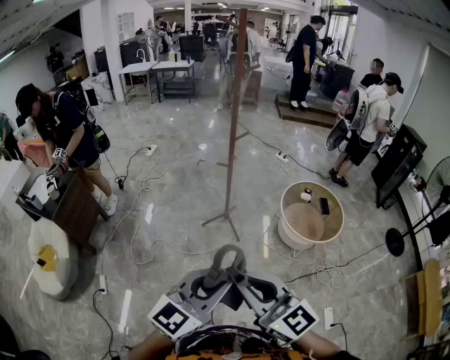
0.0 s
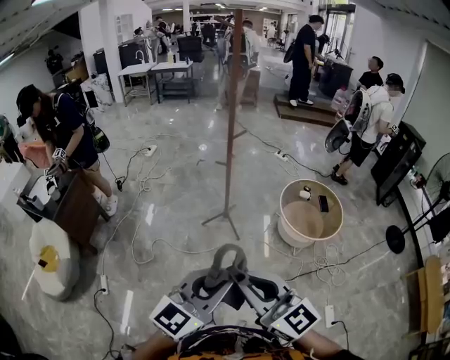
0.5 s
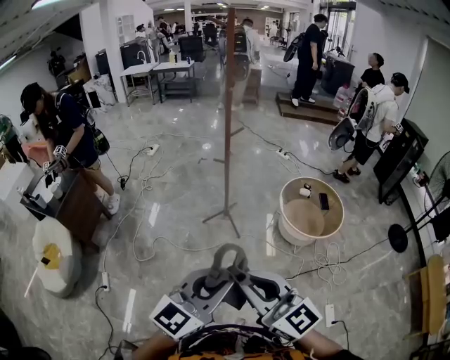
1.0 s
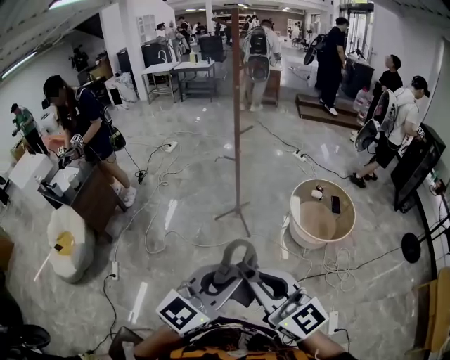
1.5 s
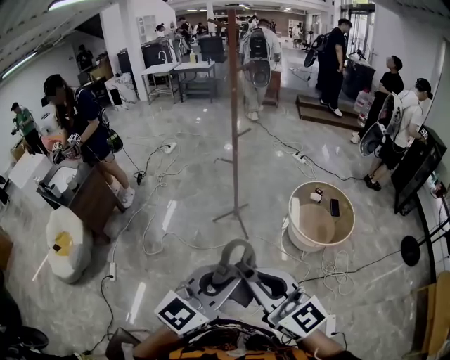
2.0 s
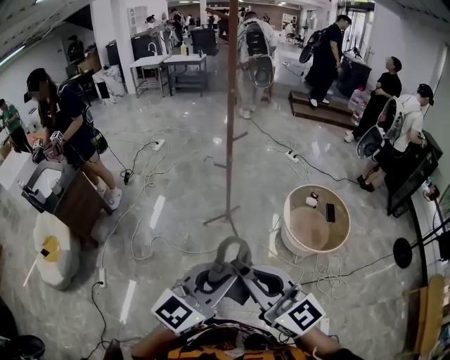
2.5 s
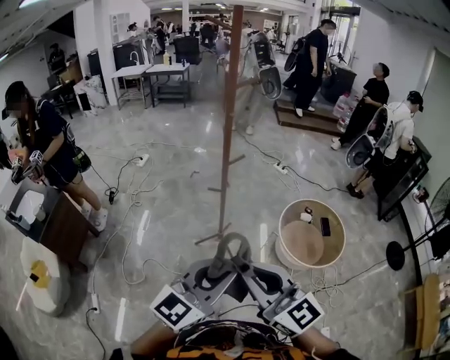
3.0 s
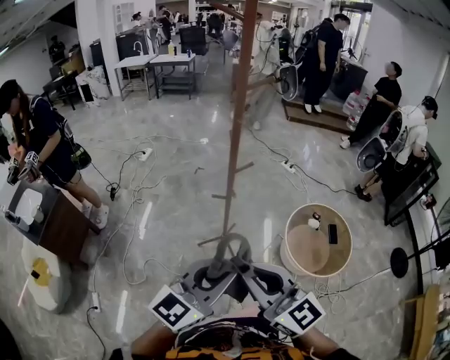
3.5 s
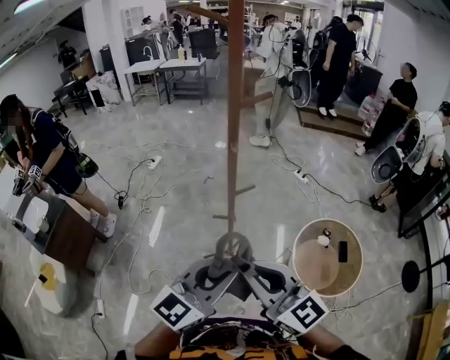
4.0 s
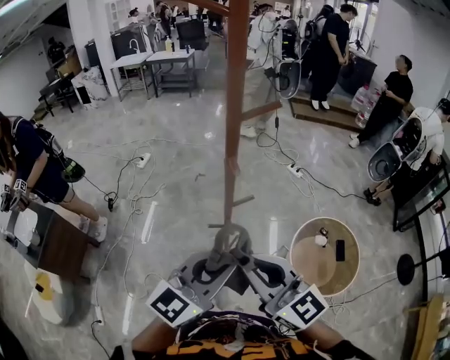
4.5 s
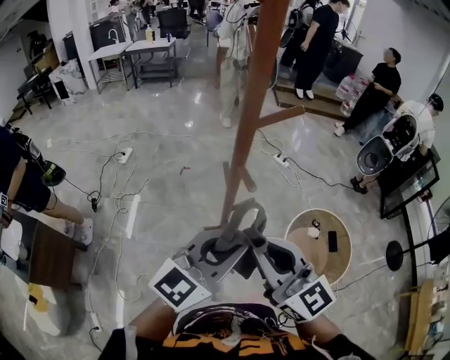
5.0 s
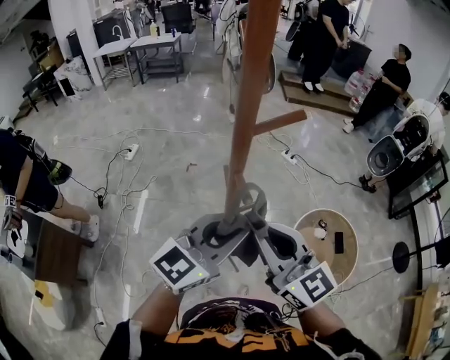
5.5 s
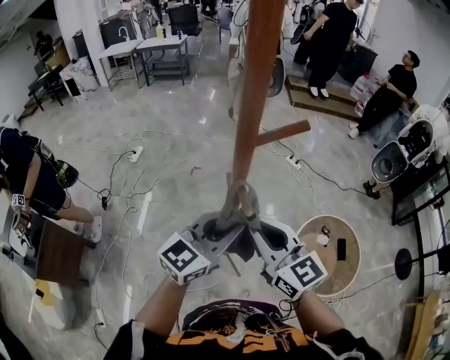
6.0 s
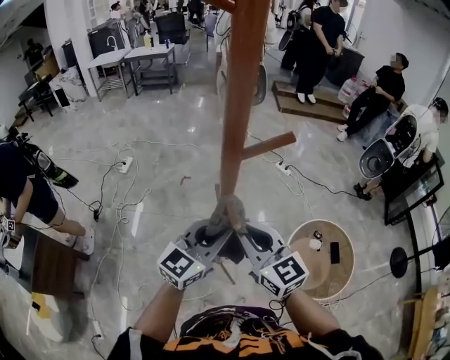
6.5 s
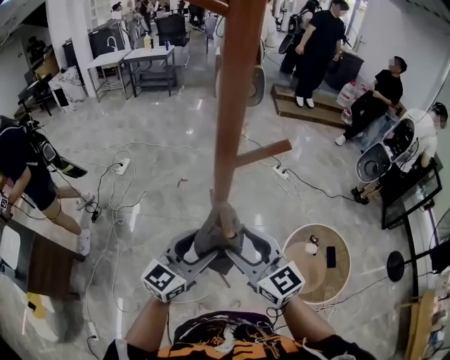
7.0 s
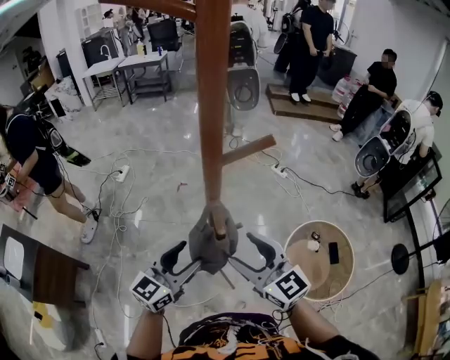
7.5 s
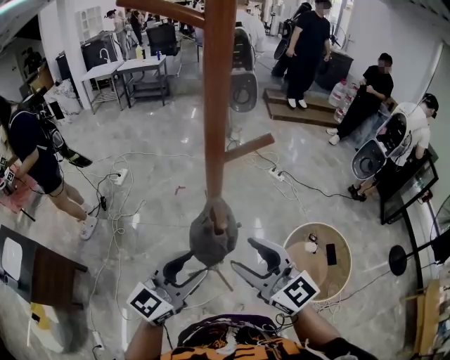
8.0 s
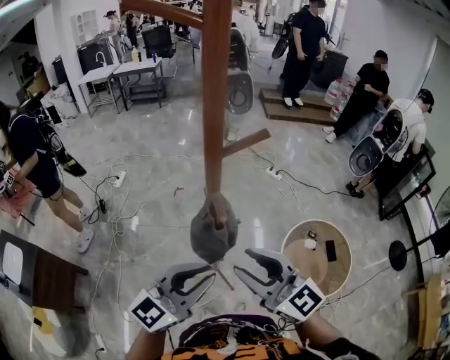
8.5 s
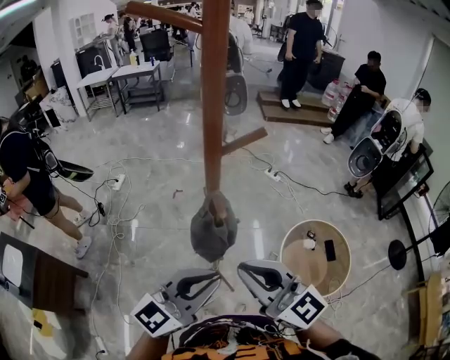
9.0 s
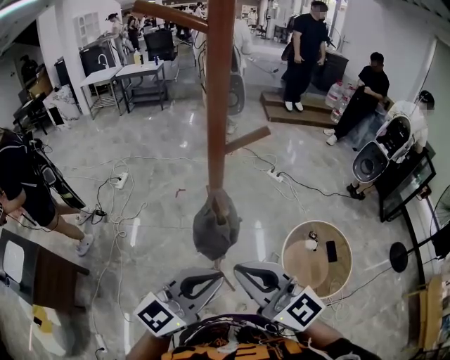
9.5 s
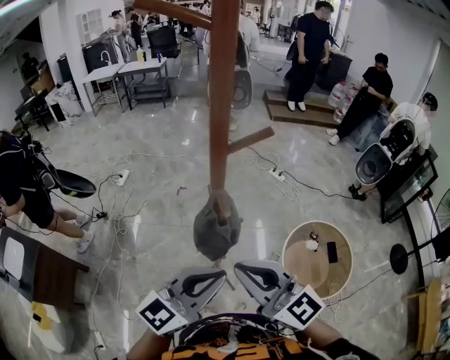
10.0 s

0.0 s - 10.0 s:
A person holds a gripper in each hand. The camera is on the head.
0.0 s - 2.0 s: The grippers both shift to the right by some 15 cm.
2.0 s - 4.0 s: Both grippers are carried forward, some 50 cm.
4.0 s - 6.0 s: Both grippers travel together forward, some 30 cm.
6.0 s - 8.0 s: Both grippers move backward, about 5 cm. The right gripper opens, while the left gripper opens up.
8.0 s - 10.0 s: Both grippers travel together backward, roughly 5 cm. The left gripper closes. The right gripper closes.

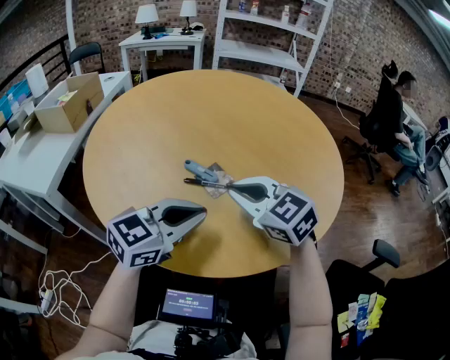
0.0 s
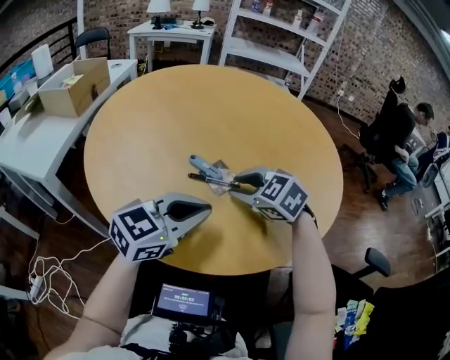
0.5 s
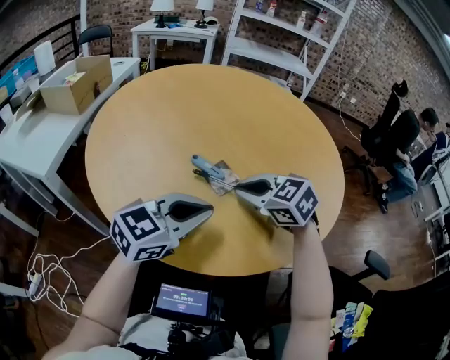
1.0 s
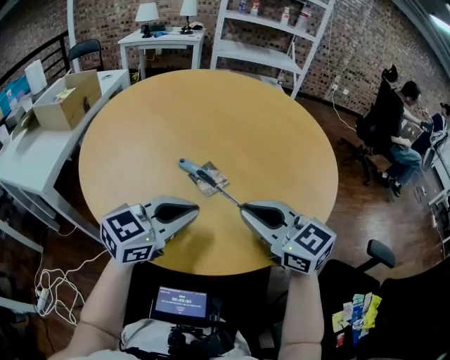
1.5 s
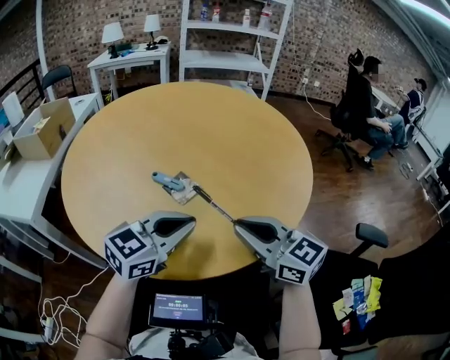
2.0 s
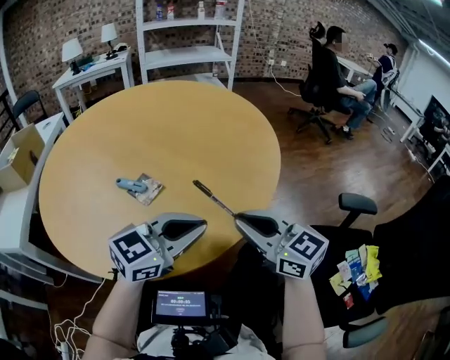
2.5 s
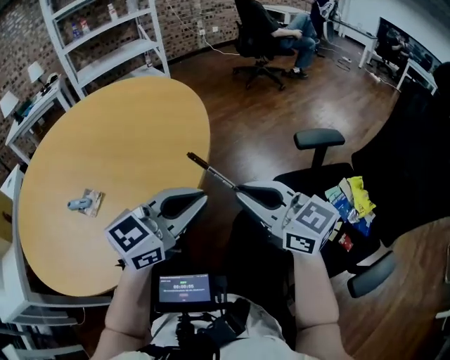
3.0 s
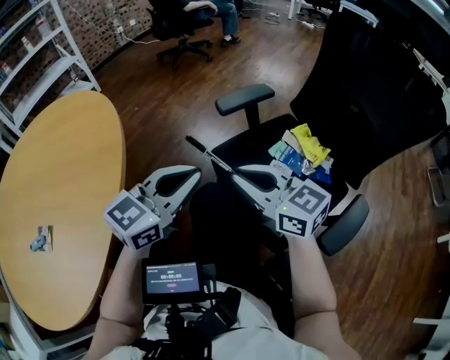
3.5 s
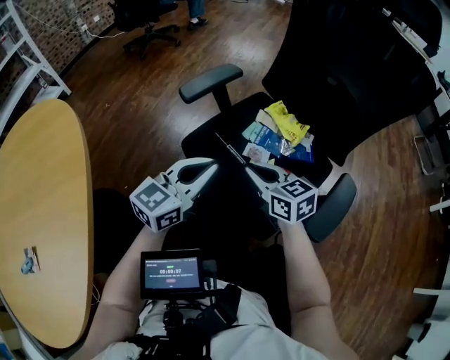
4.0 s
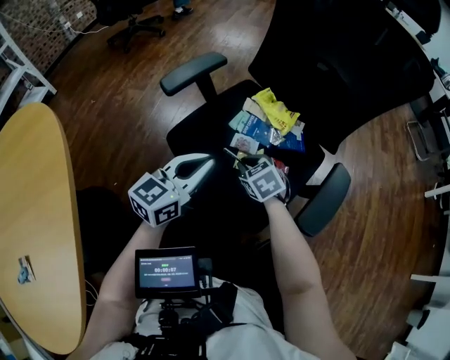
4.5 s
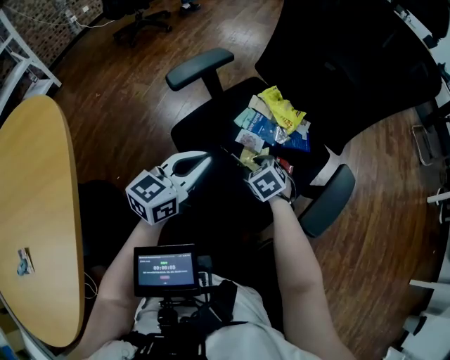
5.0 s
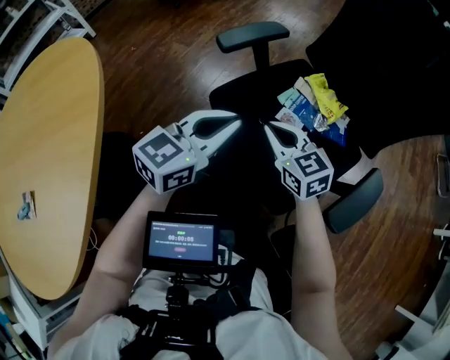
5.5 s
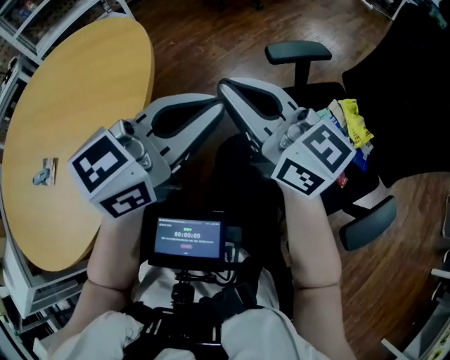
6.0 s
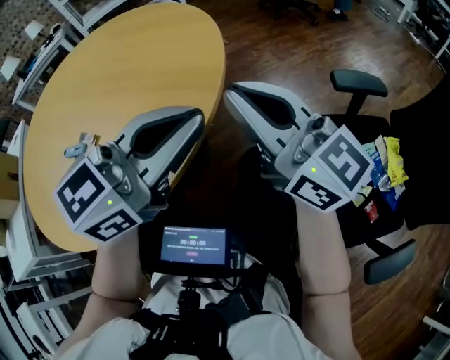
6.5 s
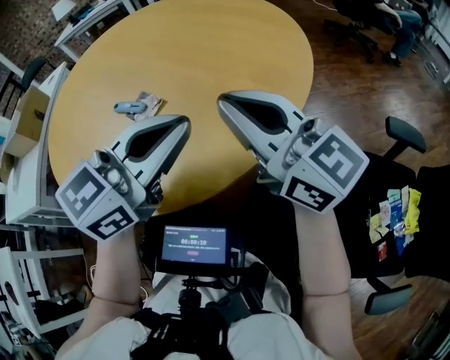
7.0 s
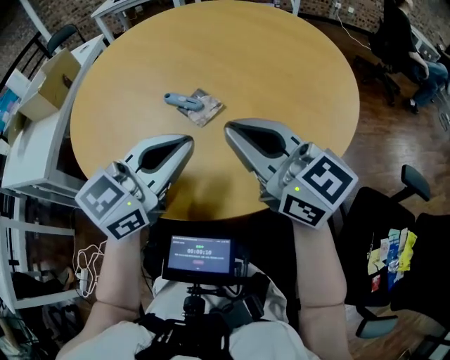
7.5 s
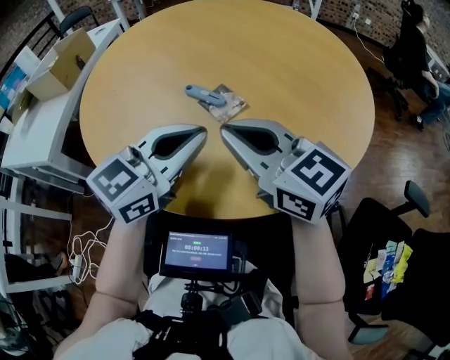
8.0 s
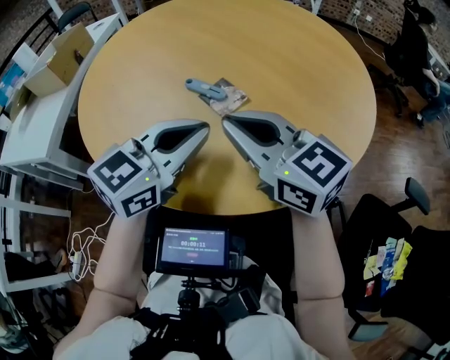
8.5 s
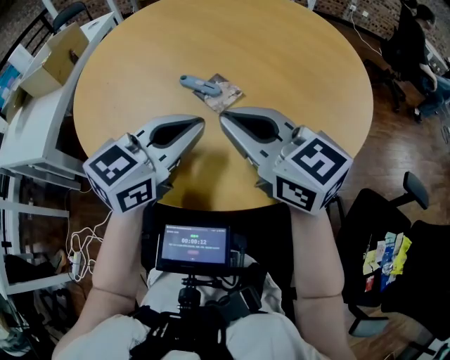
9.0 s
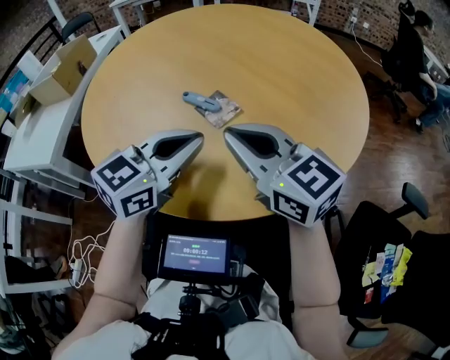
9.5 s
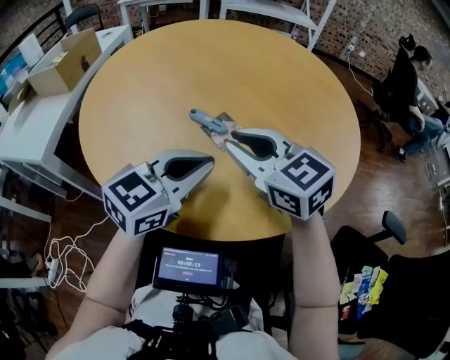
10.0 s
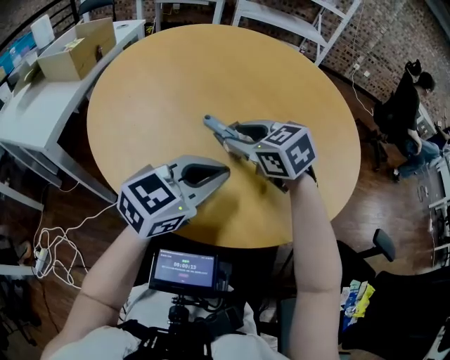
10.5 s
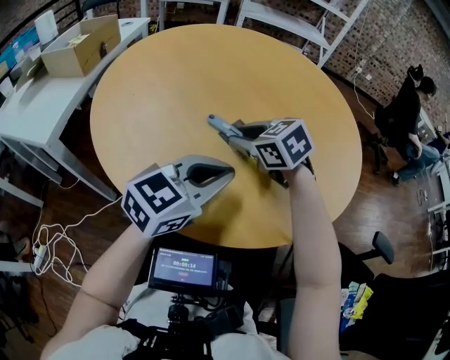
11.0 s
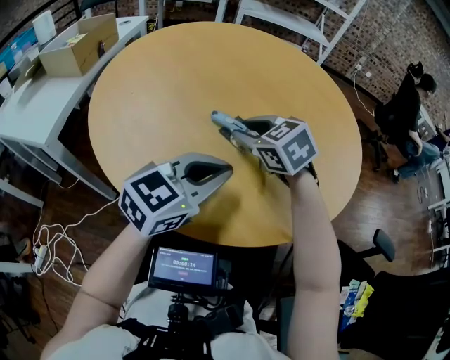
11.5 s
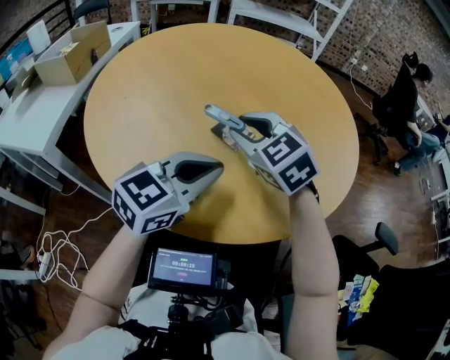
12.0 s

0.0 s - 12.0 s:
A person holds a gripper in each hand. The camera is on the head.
0.0 s - 2.0 s: The right gripper is displaced to the right and backward by some 10 cm, rotates approximately 30 degrees, and opens, then closes once more.
2.0 s - 4.0 s: The two grippers travel together, approximately 50 cm. The left gripper rotates roughly 60 degrees; the right gripper changes its angle by roughly 80 degrees.
4.0 s - 6.0 s: The grippers both shift upward by roughly 20 cm. The right gripper points its fingers some 30 degrees further upward, and opens, then closes again.
6.0 s - 8.0 s: Both grippers are carried about 50 cm. The left gripper rotates some 50 degrees, while the right gripper changes its angle by about 50 degrees.
8.0 s - 10.0 s: The grippers make only small movements.
10.0 s - 12.0 s: The right gripper goes some 5 cm forward, travels downward and back again, about 10 cm each way, and changes its angle by roughly 20 degrees.

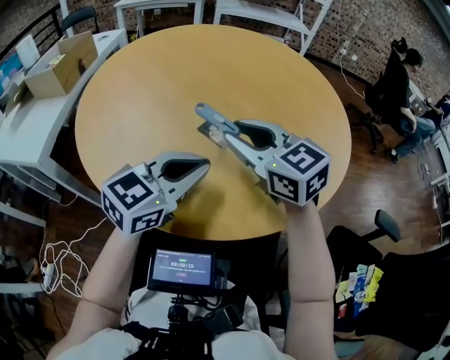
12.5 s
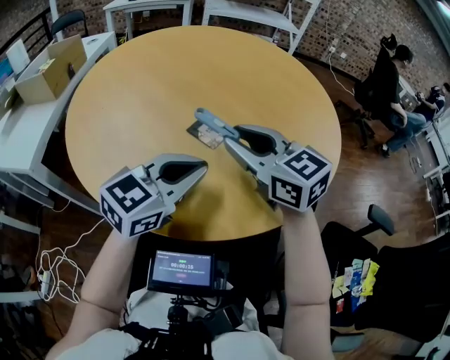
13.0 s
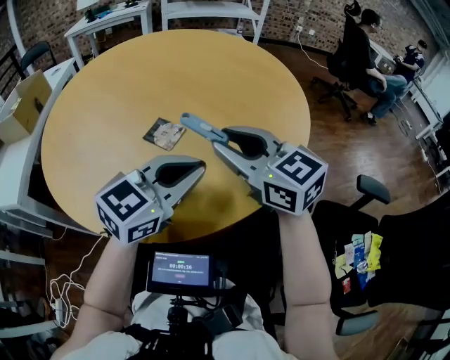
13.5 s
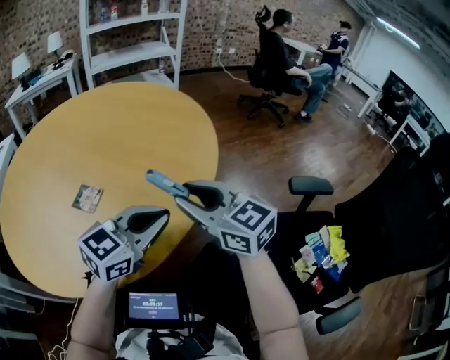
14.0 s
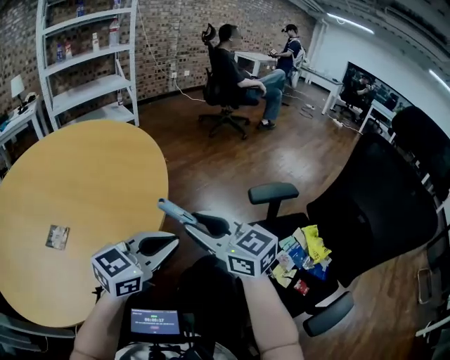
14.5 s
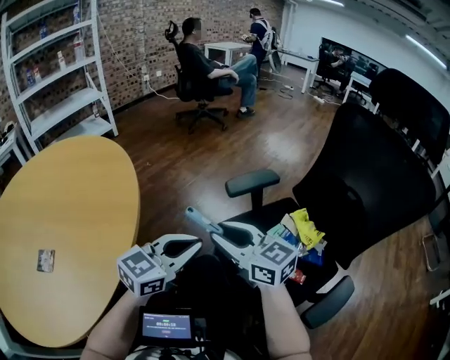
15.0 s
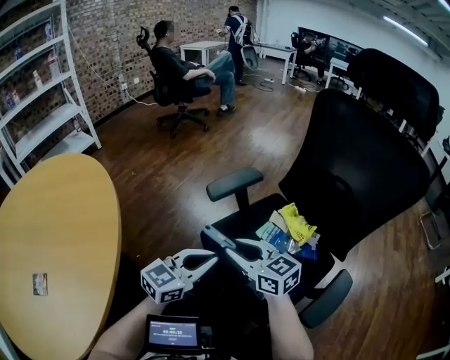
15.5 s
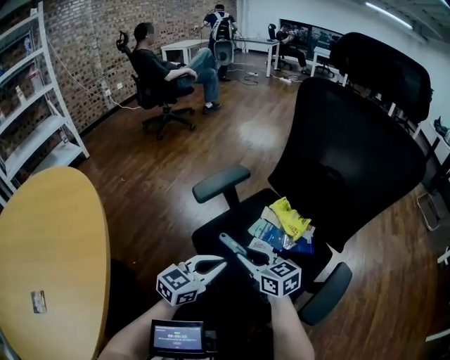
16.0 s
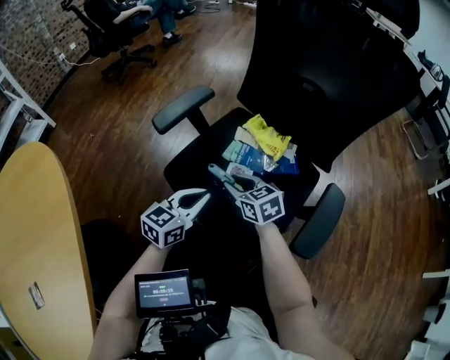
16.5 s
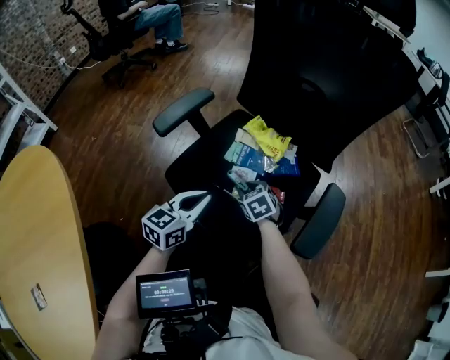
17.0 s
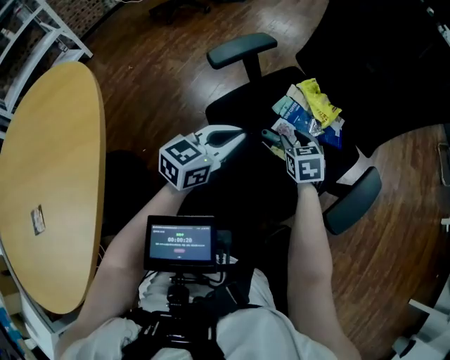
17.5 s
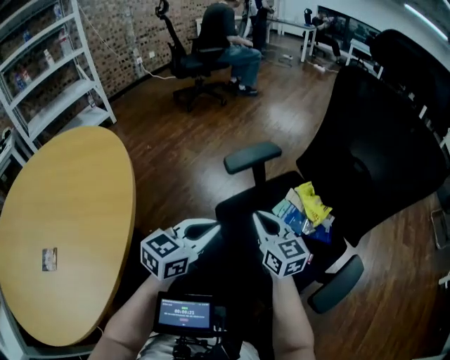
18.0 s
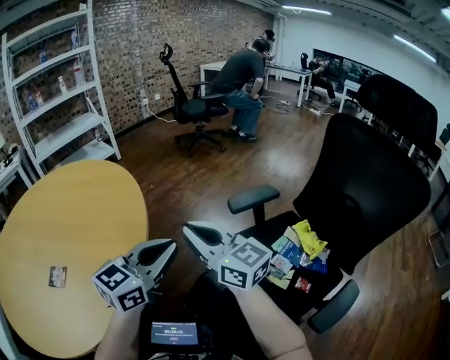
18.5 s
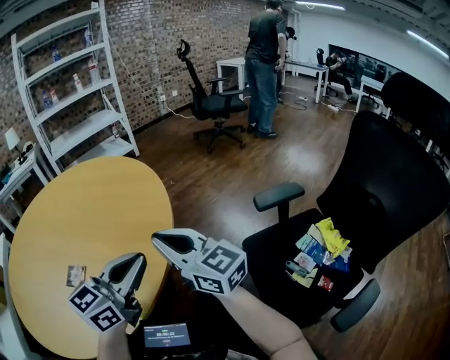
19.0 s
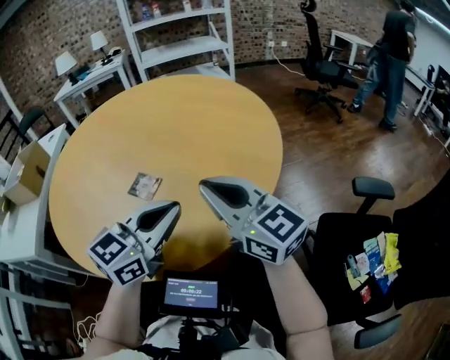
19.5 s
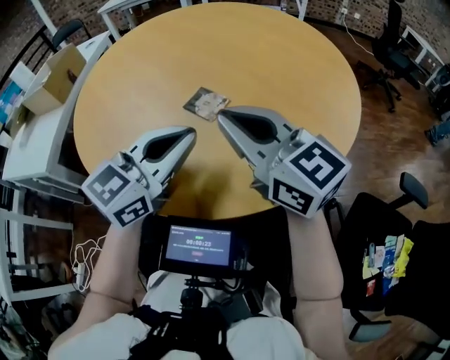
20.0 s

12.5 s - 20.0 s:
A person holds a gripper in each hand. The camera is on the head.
12.5 s - 14.5 s: The right gripper shifts by some 40 cm, and swivels some 40 degrees, while the left gripper ends up roughly 35 cm from where it was, and turns by approximately 40 degrees.
14.5 s - 16.5 s: The left gripper ends up about 35 cm from where it was, and swivels about 30 degrees, while the right gripper shifts by some 40 cm, and changes its angle by about 60 degrees.
16.5 s - 18.0 s: Both grippers travel together upward and to the left, roughly 15 cm. The right gripper swivels approximately 20 degrees, and closes its fingers.
18.0 s - 20.0 s: Both grippers are carried approximately 60 cm. The left gripper rotates about 60 degrees. The right gripper rotates some 70 degrees.
